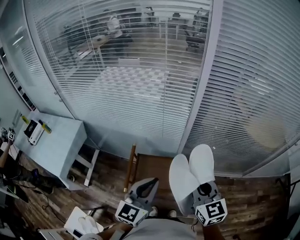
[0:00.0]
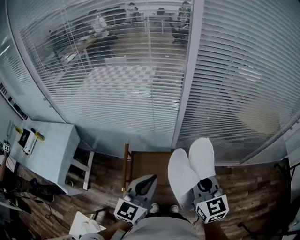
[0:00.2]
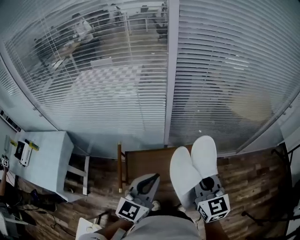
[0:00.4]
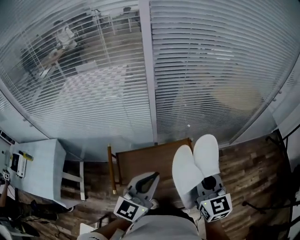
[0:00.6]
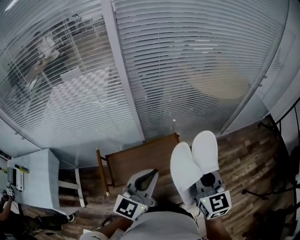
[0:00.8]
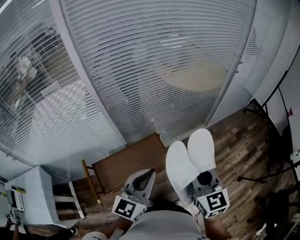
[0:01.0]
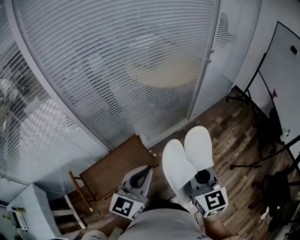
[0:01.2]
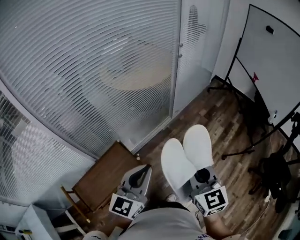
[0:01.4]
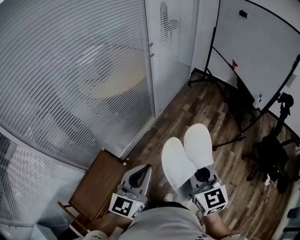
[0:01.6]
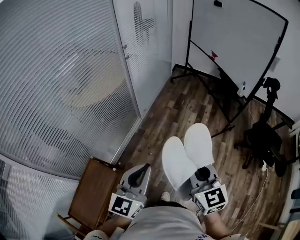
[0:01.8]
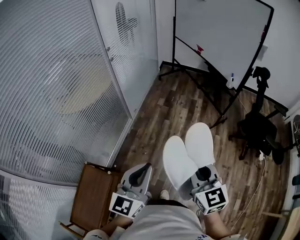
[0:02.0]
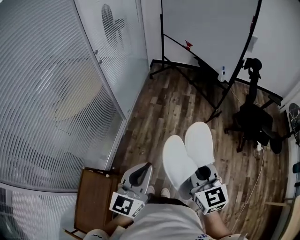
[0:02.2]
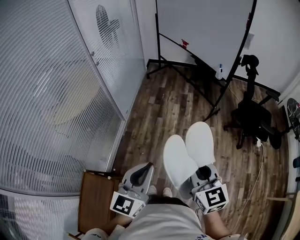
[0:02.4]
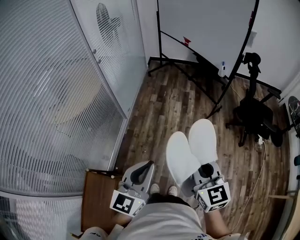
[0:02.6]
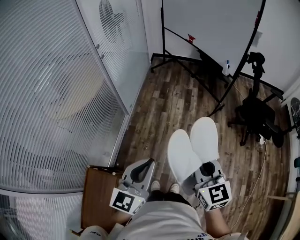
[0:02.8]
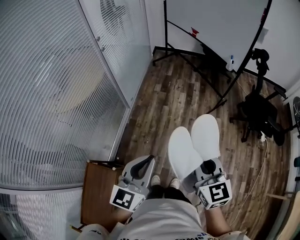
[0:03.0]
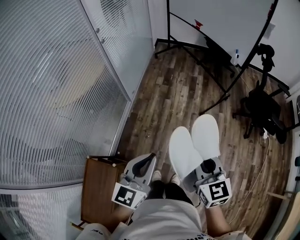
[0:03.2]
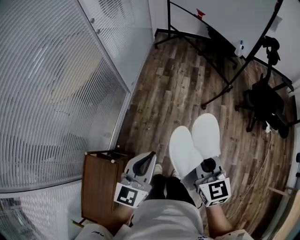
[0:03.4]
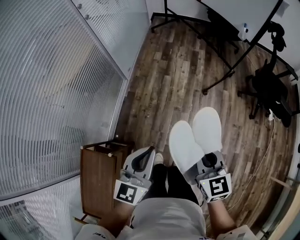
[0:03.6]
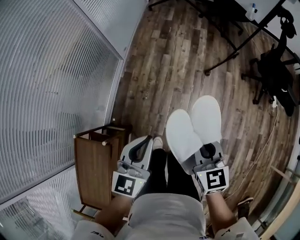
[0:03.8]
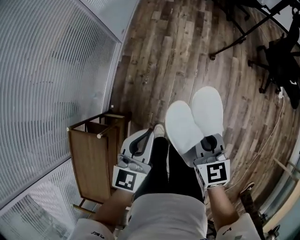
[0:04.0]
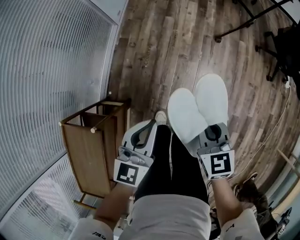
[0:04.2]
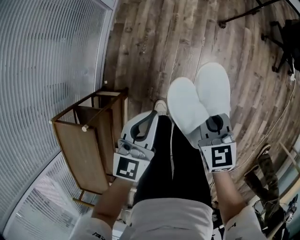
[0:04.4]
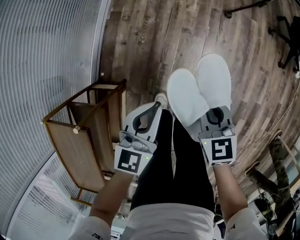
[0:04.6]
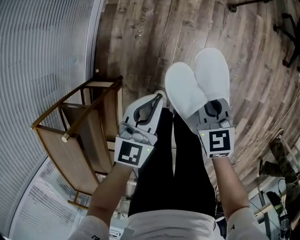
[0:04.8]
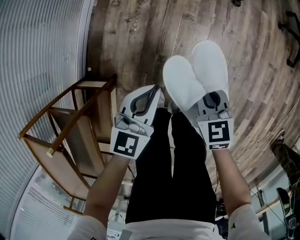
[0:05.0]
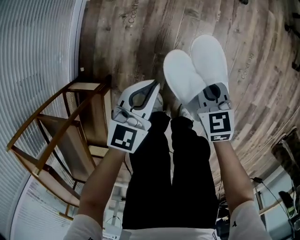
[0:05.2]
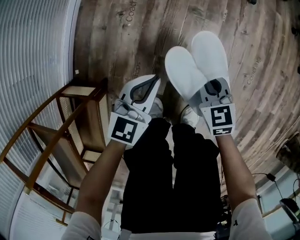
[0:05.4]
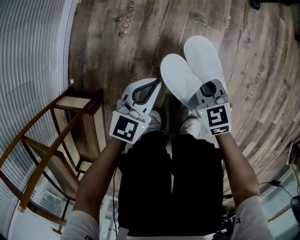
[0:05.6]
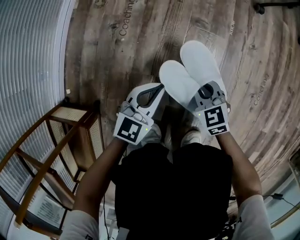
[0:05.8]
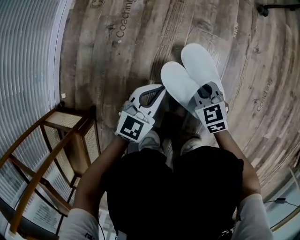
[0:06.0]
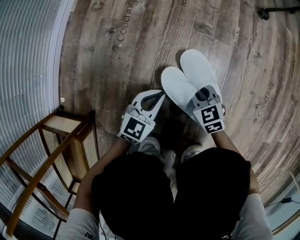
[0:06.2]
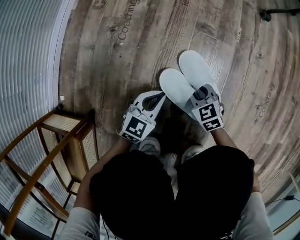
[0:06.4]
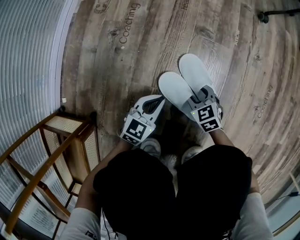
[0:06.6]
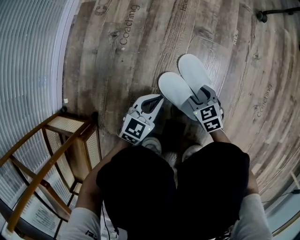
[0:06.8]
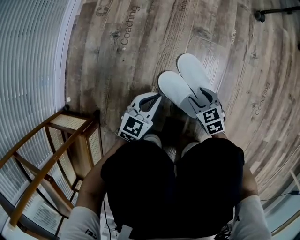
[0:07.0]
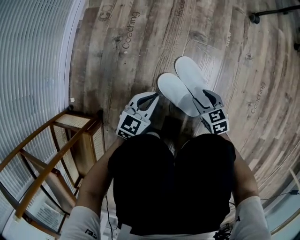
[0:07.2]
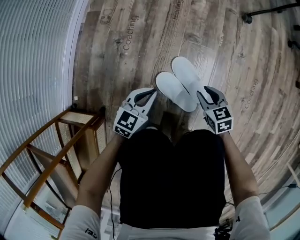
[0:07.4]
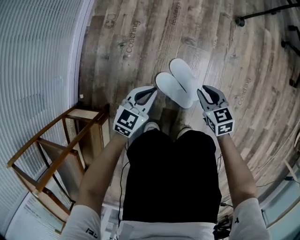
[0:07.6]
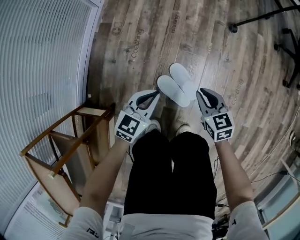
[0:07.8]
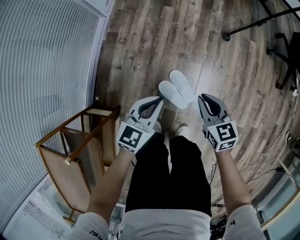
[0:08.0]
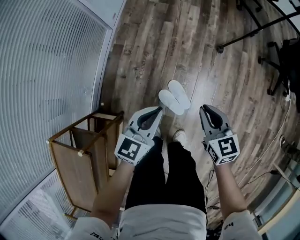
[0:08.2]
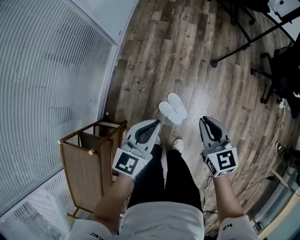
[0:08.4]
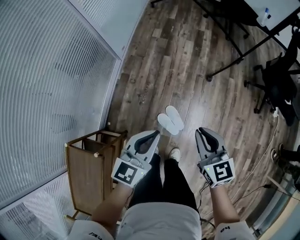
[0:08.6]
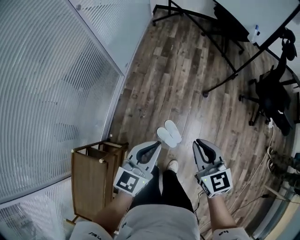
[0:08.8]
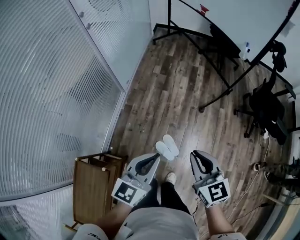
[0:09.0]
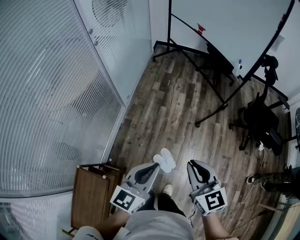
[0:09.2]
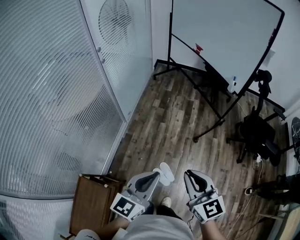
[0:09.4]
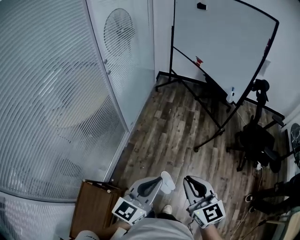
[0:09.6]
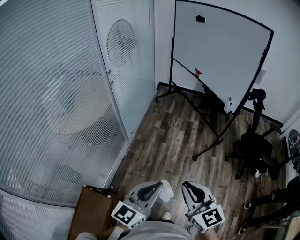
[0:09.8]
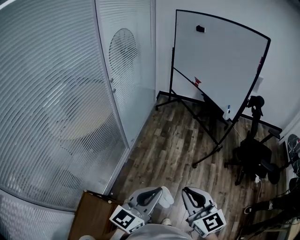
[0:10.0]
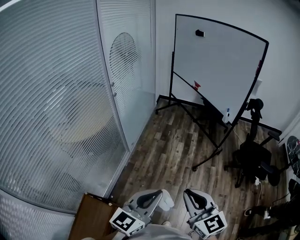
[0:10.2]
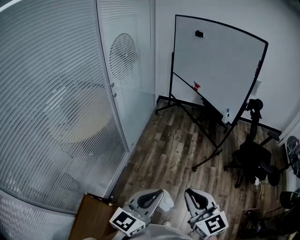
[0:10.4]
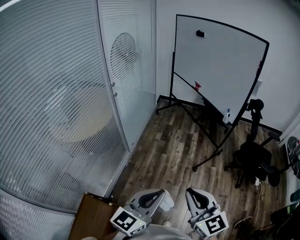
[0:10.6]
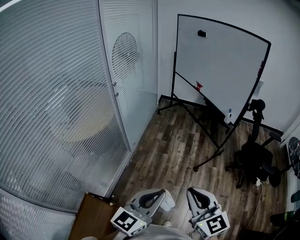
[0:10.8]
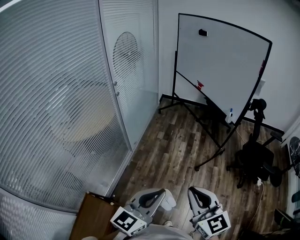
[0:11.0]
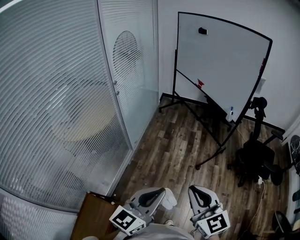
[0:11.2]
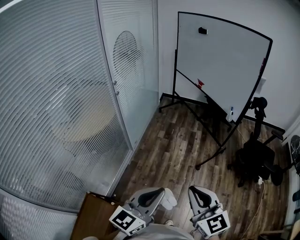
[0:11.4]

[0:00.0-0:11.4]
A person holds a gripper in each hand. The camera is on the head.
0:00.0 to 0:01.4: Both grippers are carried roughly 50 cm. The right gripper rotates roughly 50 degrees, while the left gripper swivels roughly 50 degrees.
0:01.4 to 0:02.8: The left gripper ends up approximately 20 cm from where it was, and rotates some 30 degrees, while the right gripper ends up roughly 20 cm from where it was, and rotates about 40 degrees.
0:02.8 to 0:04.2: Both grippers travel together downward, roughly 35 cm. The right gripper swivels some 20 degrees.
0:04.2 to 0:05.6: Both grippers travel together downward, about 60 cm.
0:05.6 to 0:07.2: Both grippers move downward, some 15 cm. The right gripper opens its fingers.
0:07.2 to 0:08.6: The grippers both shift upward by roughly 80 cm. The right gripper swivels approximately 30 degrees, and closes its fingers.
0:08.6 to 0:10.0: The grippers both shift upward by some 35 cm. The left gripper swivels roughly 20 degrees, while the right gripper rotates about 20 degrees.
0:10.0 to 0:11.4: There are only small adjustments of the grippers.

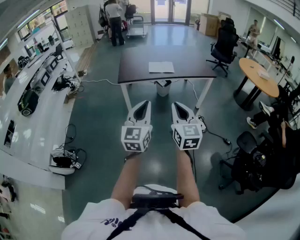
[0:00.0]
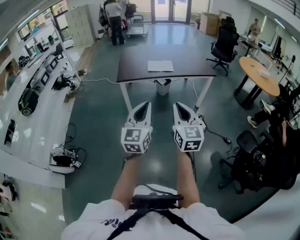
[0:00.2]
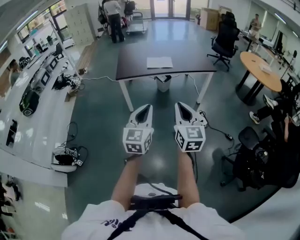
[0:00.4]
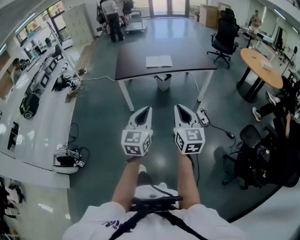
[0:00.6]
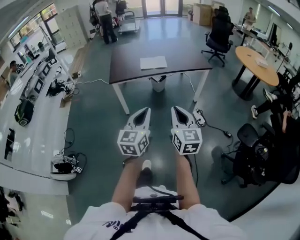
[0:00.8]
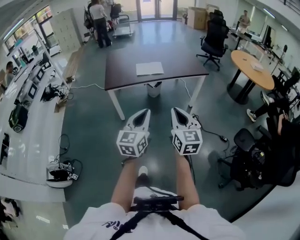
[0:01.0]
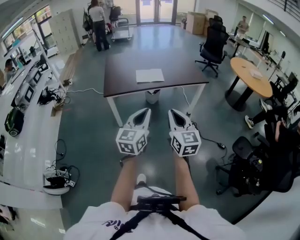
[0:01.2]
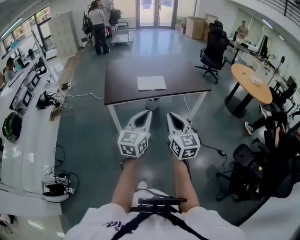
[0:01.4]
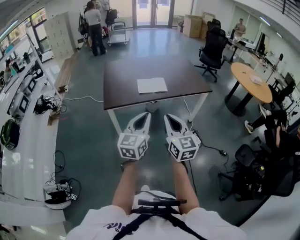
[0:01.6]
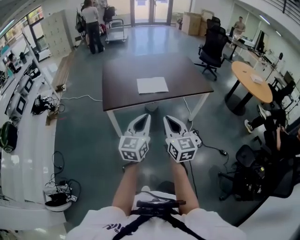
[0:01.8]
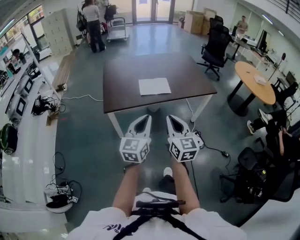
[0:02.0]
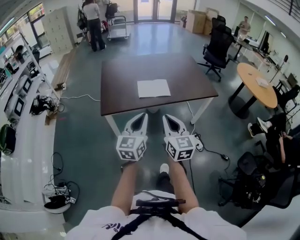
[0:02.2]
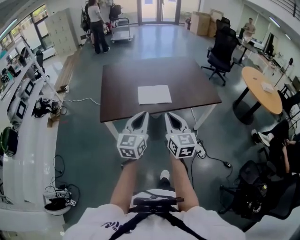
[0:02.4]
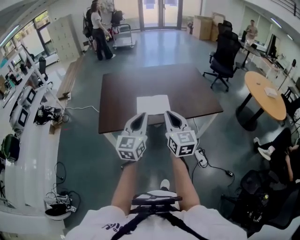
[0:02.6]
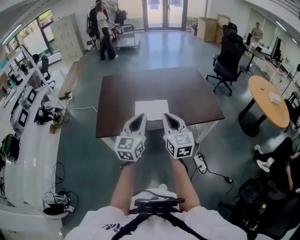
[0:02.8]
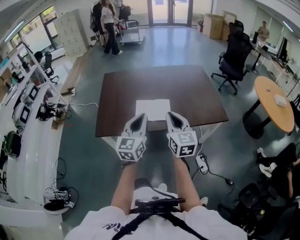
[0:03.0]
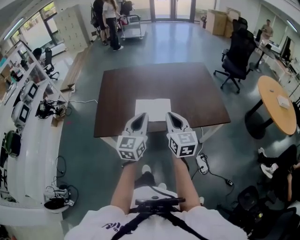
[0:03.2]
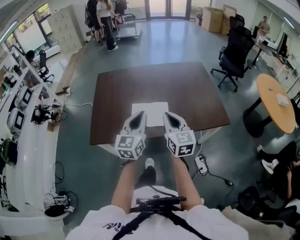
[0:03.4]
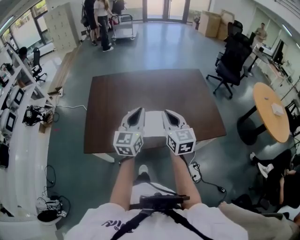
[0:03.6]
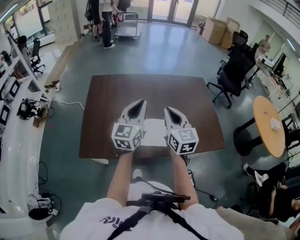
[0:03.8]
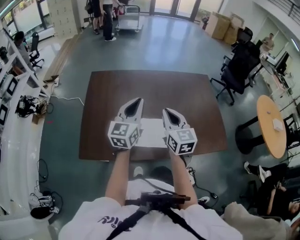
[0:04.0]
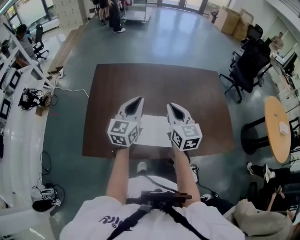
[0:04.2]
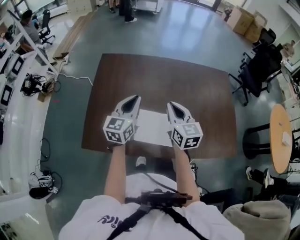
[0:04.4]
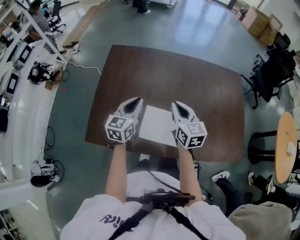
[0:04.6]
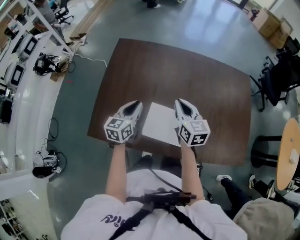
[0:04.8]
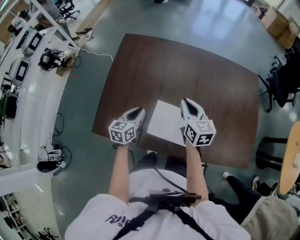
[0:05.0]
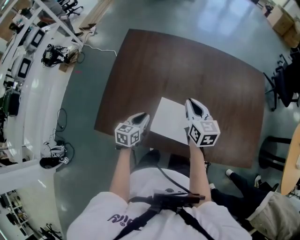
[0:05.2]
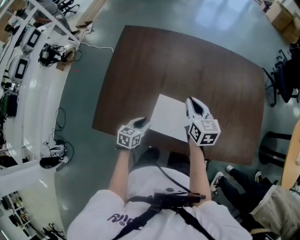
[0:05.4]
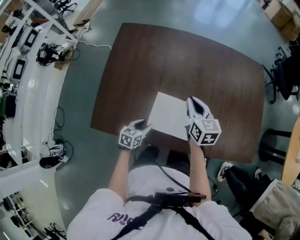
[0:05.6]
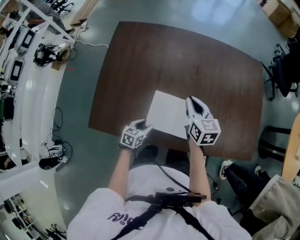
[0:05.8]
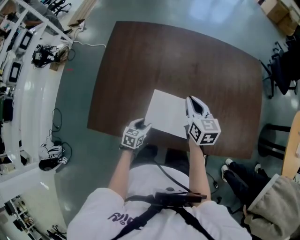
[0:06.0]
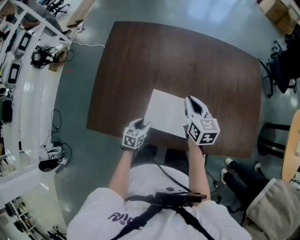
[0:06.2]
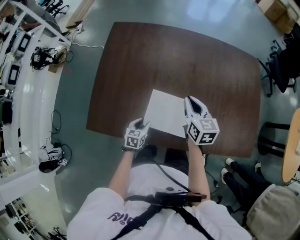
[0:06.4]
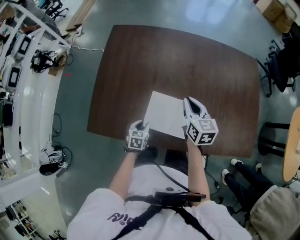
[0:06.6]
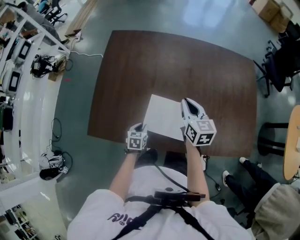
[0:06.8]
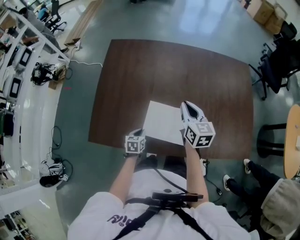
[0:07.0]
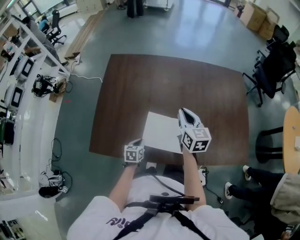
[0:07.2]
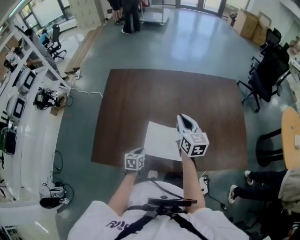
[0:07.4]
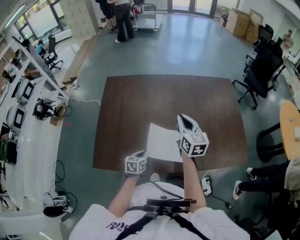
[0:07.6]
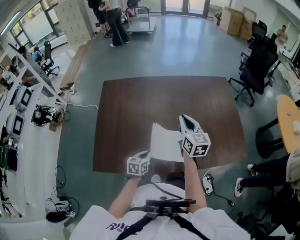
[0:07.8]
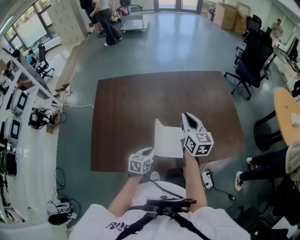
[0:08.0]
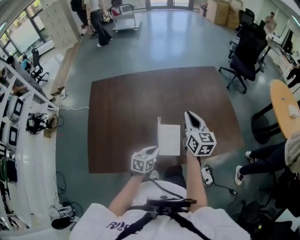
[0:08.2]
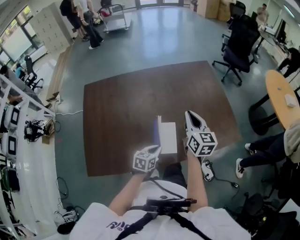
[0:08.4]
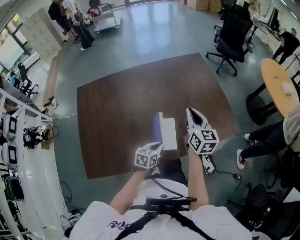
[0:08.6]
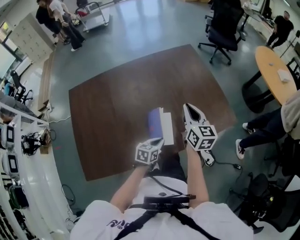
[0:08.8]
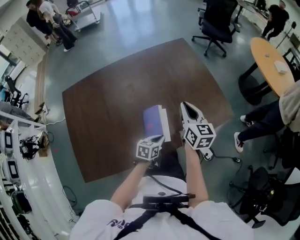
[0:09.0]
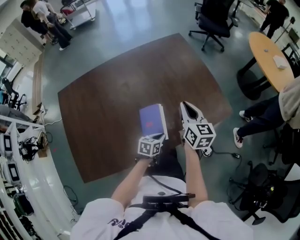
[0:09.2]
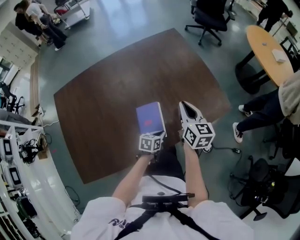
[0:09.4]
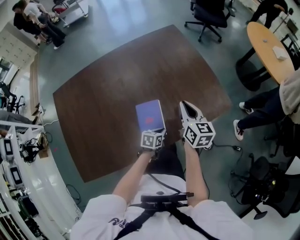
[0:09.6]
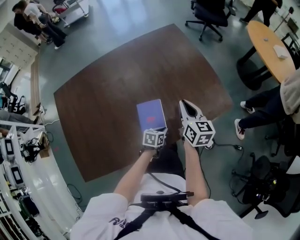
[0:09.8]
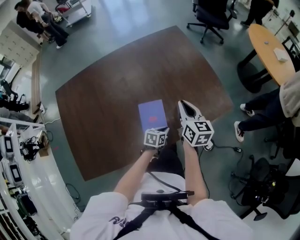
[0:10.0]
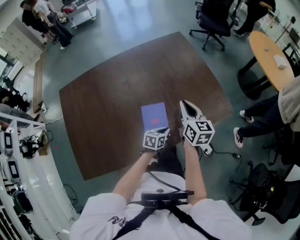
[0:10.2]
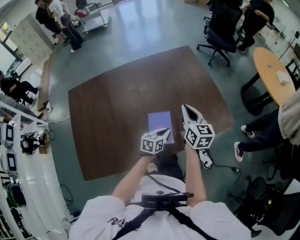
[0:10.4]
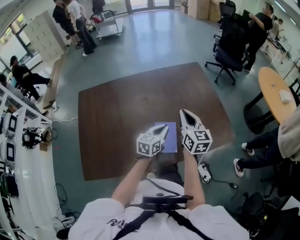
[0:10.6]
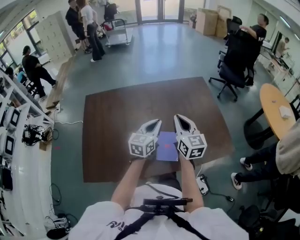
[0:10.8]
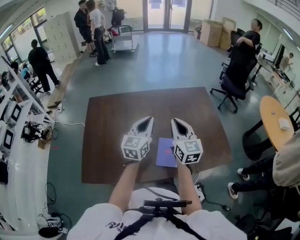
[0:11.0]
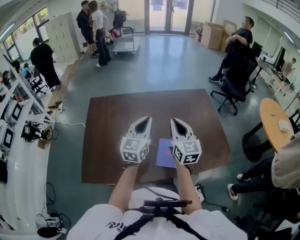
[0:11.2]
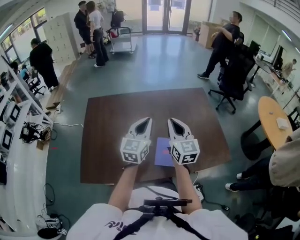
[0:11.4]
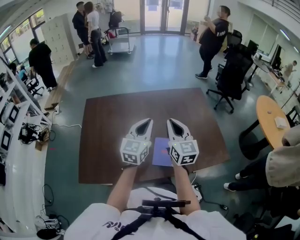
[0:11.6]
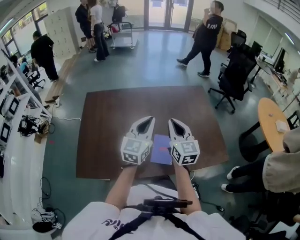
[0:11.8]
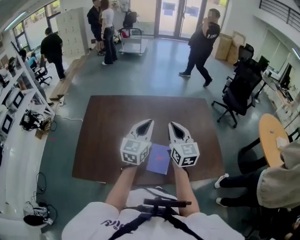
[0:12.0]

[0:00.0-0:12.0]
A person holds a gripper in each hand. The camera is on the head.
0:00.0 to 0:01.6: Both grippers travel together forward, about 30 cm.
0:01.6 to 0:03.0: Both grippers travel together forward, approximately 40 cm.
0:03.0 to 0:04.4: Both grippers are carried forward, approximately 40 cm.
0:04.4 to 0:06.0: The right gripper goes approximately 15 cm downward. Meanwhile the left gripper heads downward, covering about 35 cm, points its fingers about 40 degrees further downward, and opens.
0:06.0 to 0:07.6: Both grippers move upward, approximately 10 cm. The left gripper closes up.
0:07.6 to 0:09.0: The left gripper changes place by roughly 25 cm, and changes its angle by some 40 degrees. The right gripper moves about 25 cm, and turns by some 30 degrees.
0:09.0 to 0:10.4: The left gripper travels forward by some 5 cm, and travels downward and back again, about 10 cm each way.
0:10.4 to 0:12.0: The right gripper heads upward, covering some 10 cm, and turns by some 30 degrees. The left gripper shifts about 30 cm upward, and tips its fingers upward by roughly 30 degrees.
